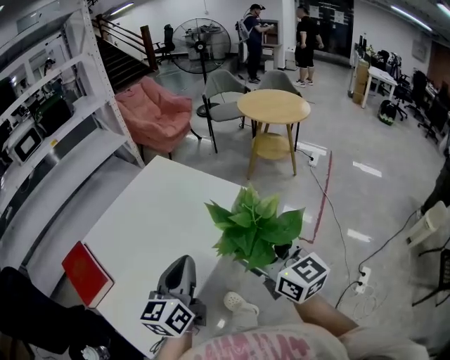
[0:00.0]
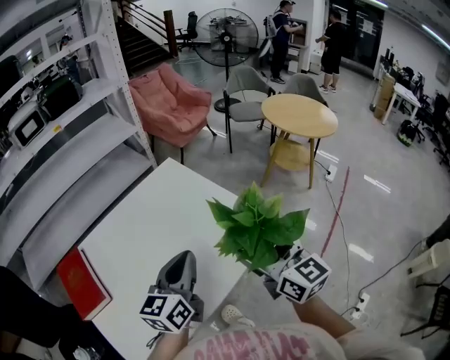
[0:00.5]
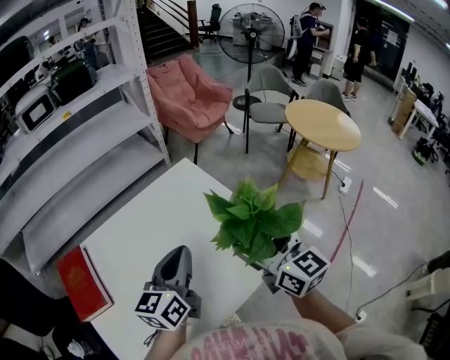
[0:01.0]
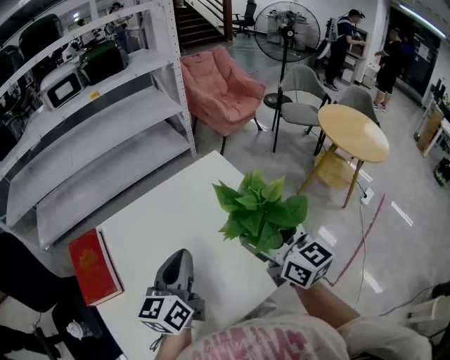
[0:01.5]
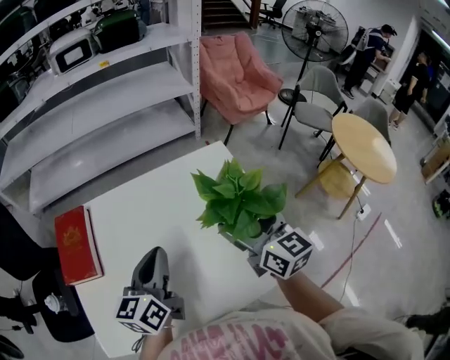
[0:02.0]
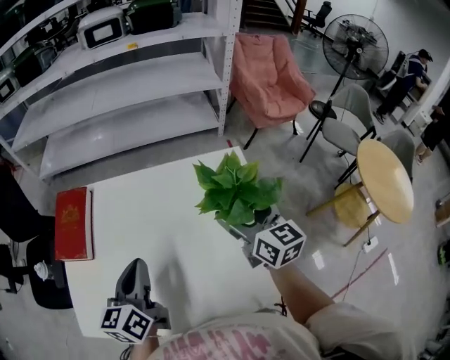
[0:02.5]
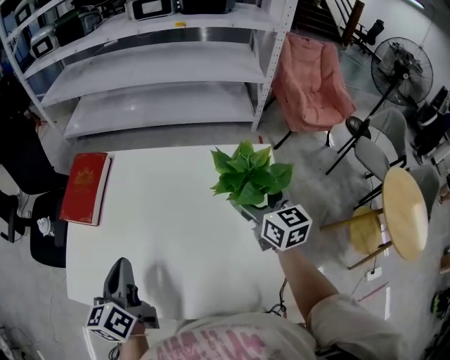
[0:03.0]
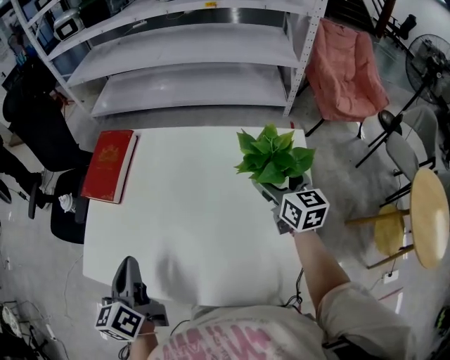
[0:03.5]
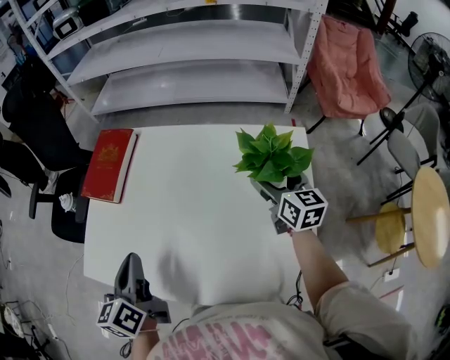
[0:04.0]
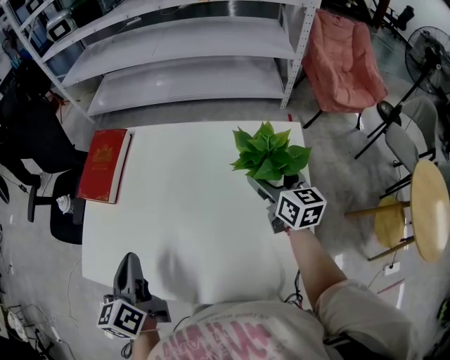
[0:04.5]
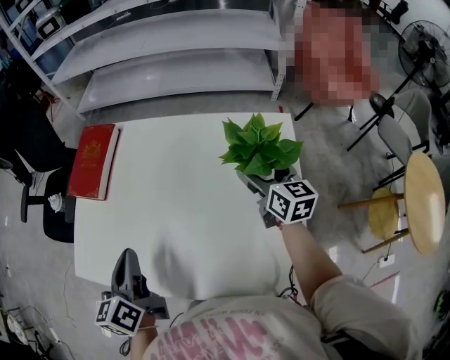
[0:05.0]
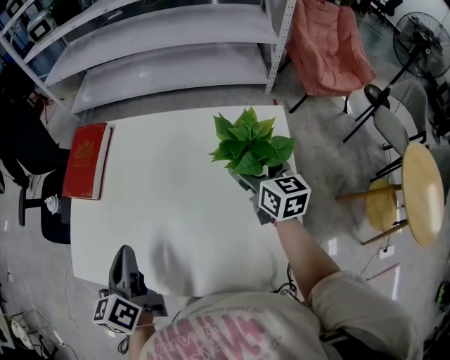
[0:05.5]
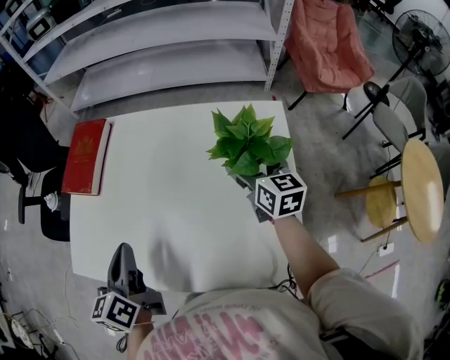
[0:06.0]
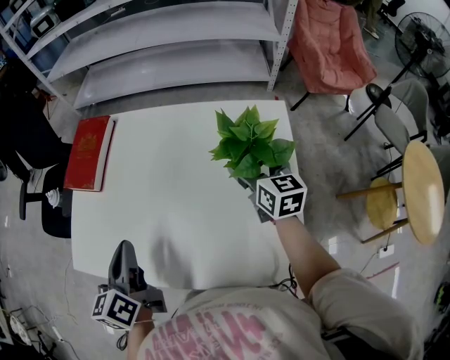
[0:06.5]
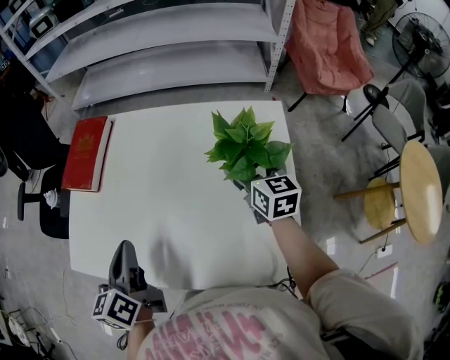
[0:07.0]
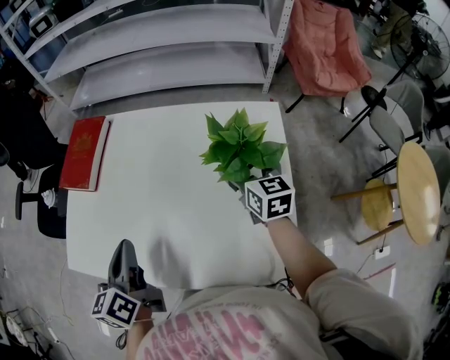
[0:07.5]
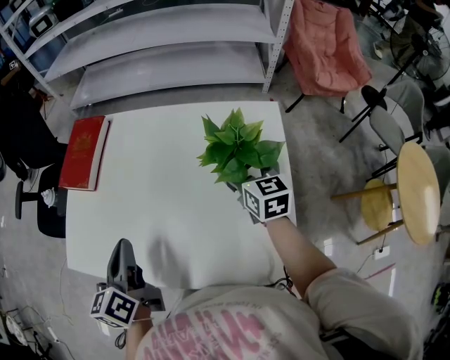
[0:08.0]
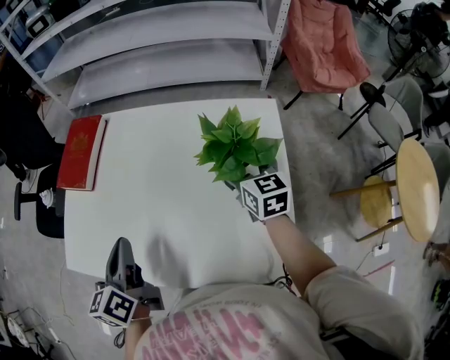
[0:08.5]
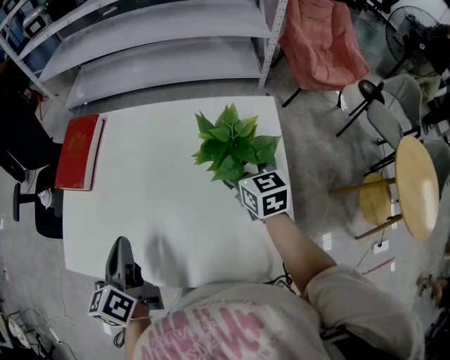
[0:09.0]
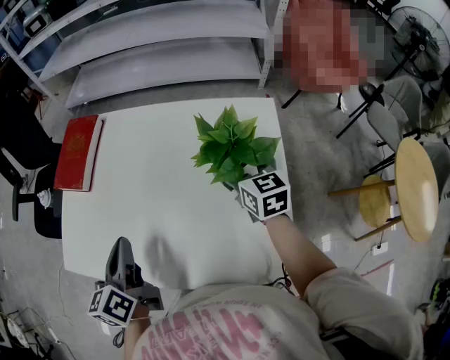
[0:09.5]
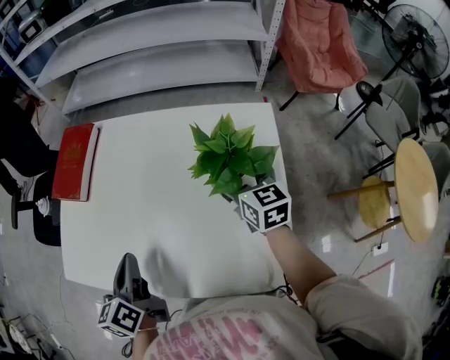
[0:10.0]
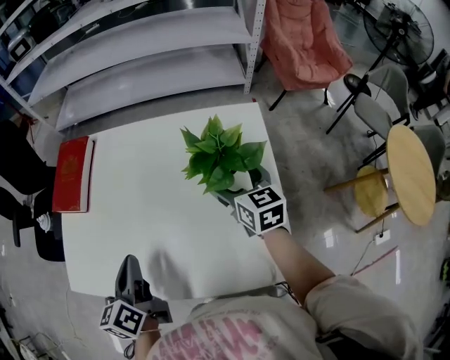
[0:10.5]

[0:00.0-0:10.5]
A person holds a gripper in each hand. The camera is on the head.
0:00.0 to 0:02.0: The left gripper ends up about 25 cm from where it was, and turns by approximately 40 degrees; the right gripper shifts by approximately 35 cm, and swivels roughly 30 degrees.
0:02.0 to 0:04.0: The right gripper ends up some 20 cm from where it was, and rotates approximately 20 degrees; the left gripper moves about 15 cm, and swivels about 50 degrees.
0:04.0 to 0:08.5: The grippers move only a little.
0:08.5 to 0:10.5: The grippers move only a little.

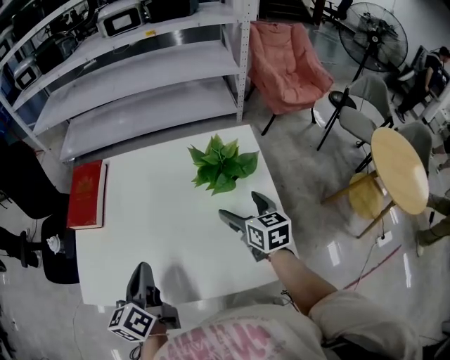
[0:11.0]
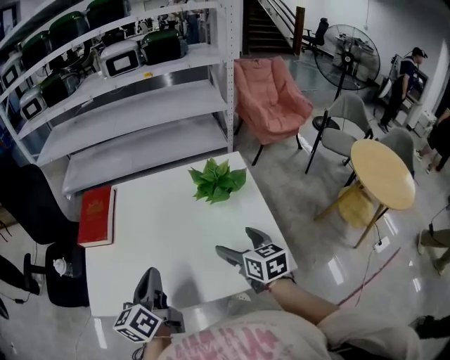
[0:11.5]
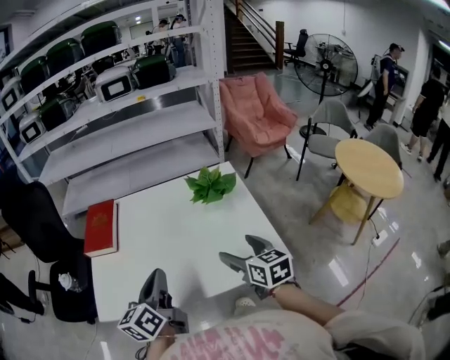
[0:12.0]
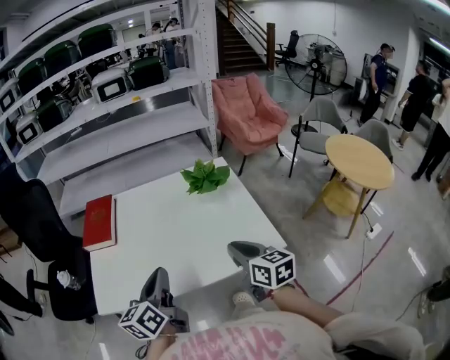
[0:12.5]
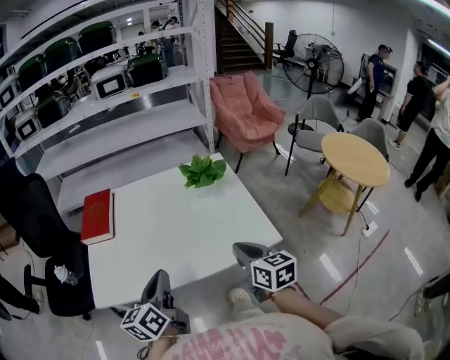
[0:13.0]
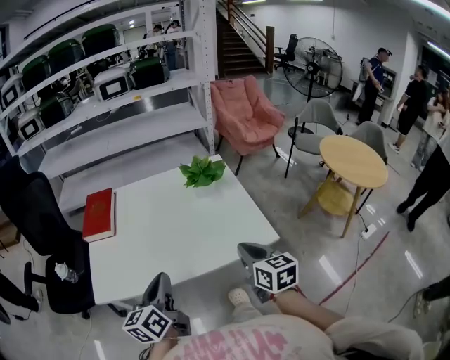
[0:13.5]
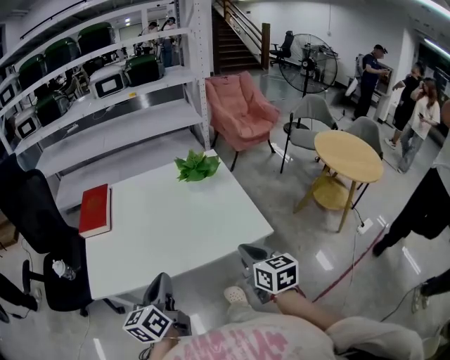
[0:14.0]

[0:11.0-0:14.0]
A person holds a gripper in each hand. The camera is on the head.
0:11.0 to 0:12.5: The right gripper is displaced backward by approximately 20 cm, and closes its fingers. The left gripper shifts approximately 10 cm backward and upward, and swivels approximately 20 degrees.
0:12.5 to 0:14.0: The grippers both shift backward by approximately 10 cm.

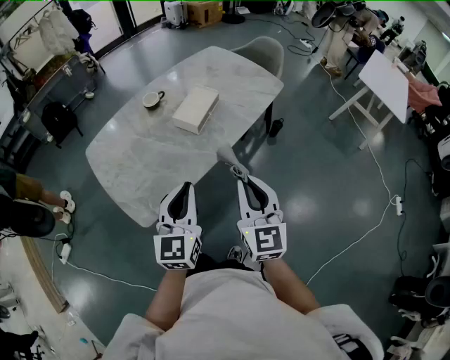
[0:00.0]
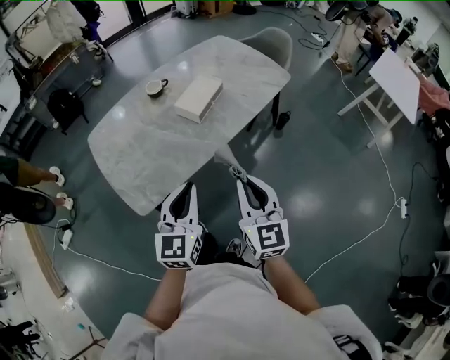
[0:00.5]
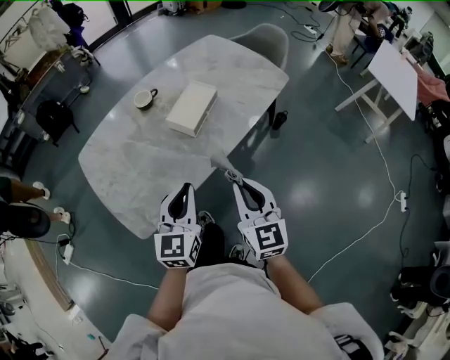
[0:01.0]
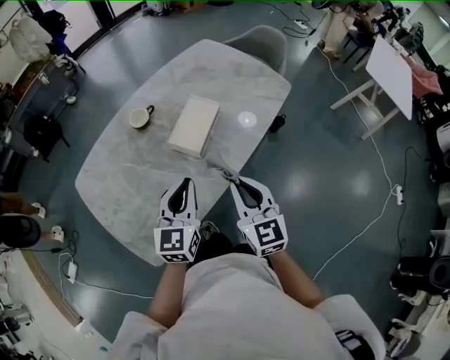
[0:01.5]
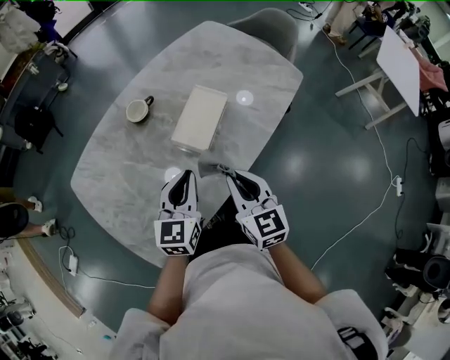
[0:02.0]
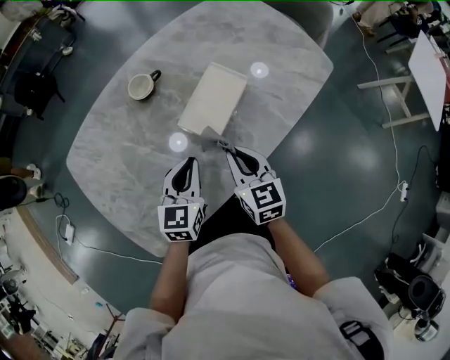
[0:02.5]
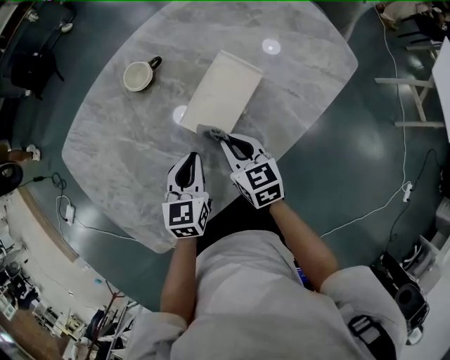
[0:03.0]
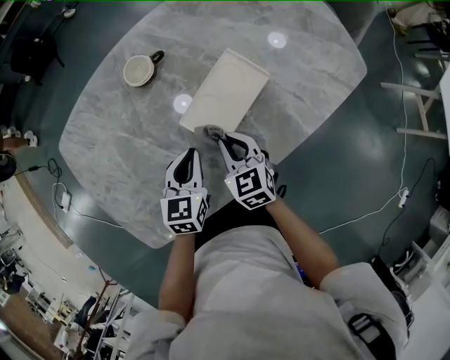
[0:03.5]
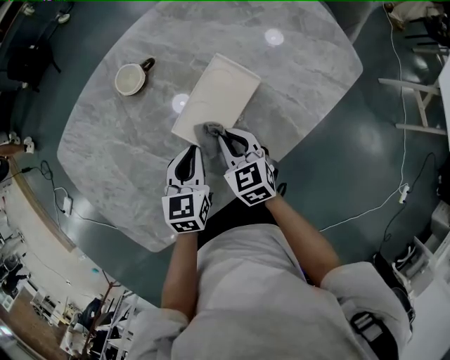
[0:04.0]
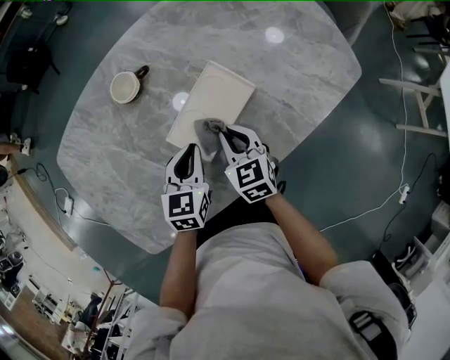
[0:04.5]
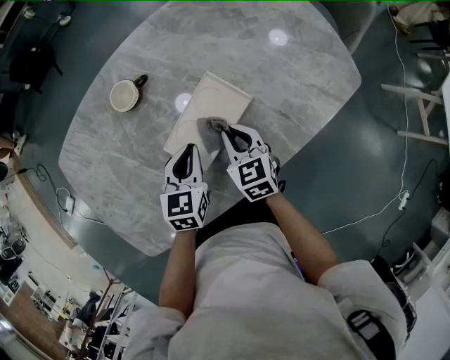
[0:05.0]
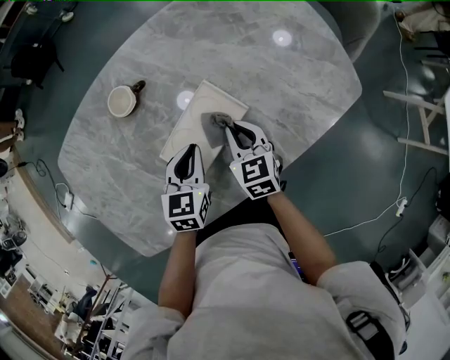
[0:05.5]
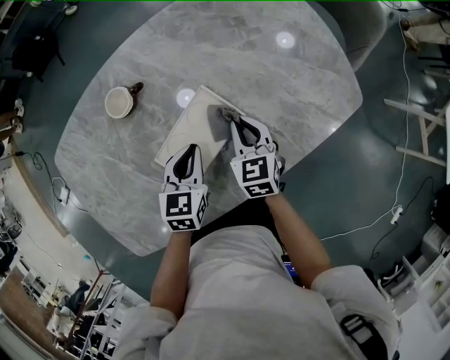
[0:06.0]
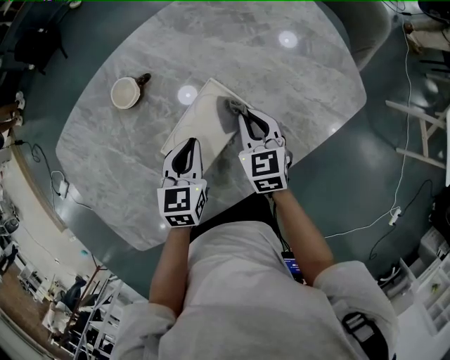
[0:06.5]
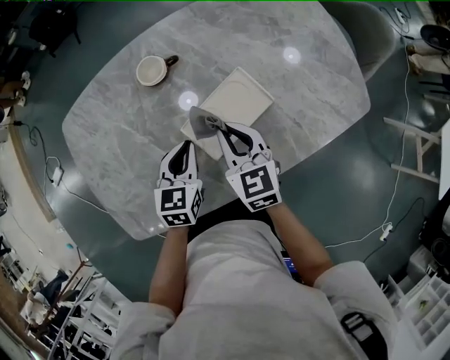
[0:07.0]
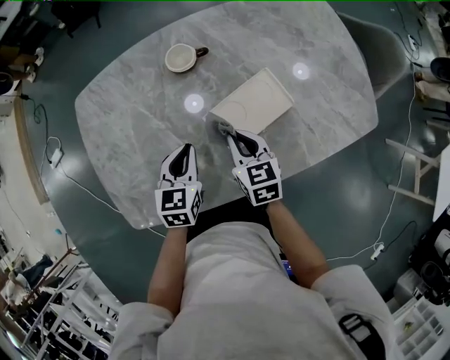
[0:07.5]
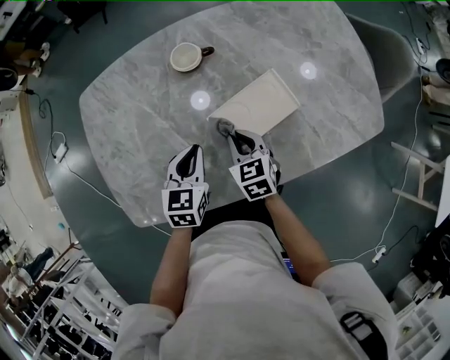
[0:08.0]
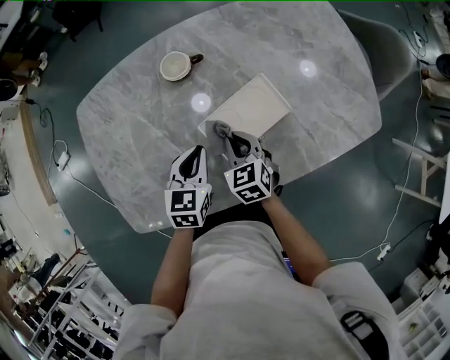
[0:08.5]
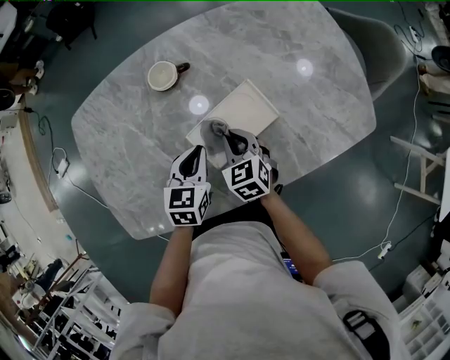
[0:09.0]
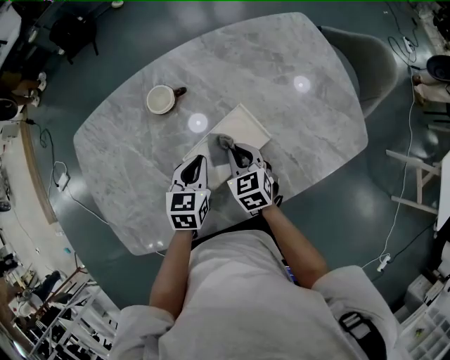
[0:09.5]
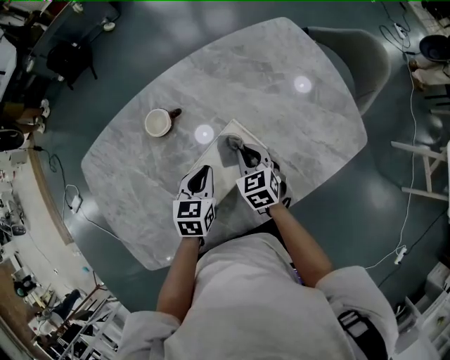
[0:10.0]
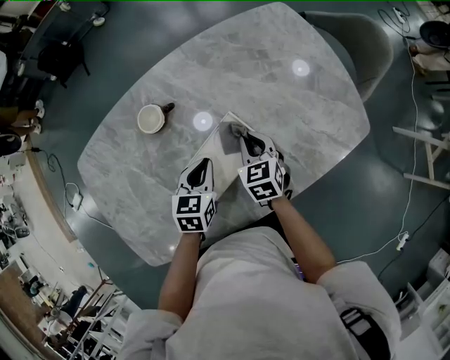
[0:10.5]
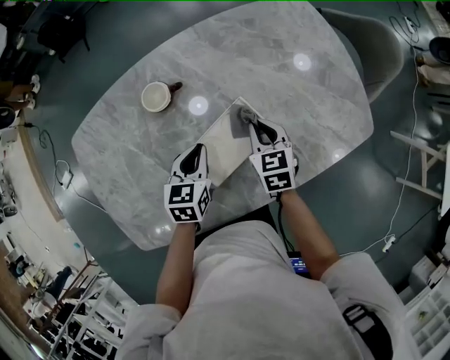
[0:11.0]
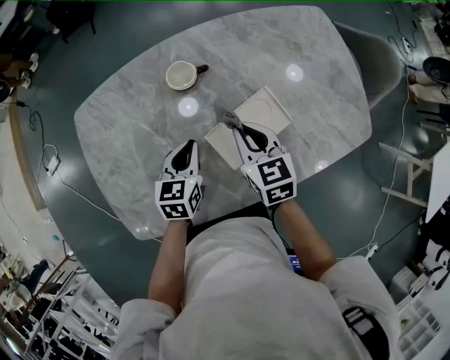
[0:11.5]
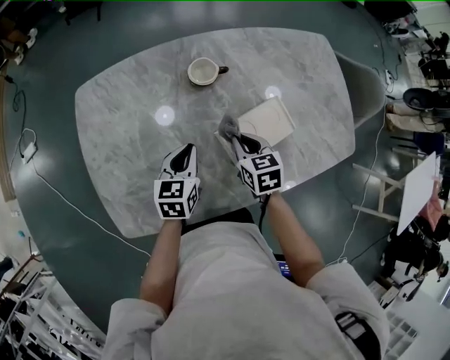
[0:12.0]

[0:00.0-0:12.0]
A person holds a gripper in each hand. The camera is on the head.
0:00.0 to 0:02.0: The two grippers go approximately 30 cm forward and downward.
0:02.0 to 0:04.0: The grippers both shift downward and forward by approximately 20 cm. The right gripper rotates about 30 degrees. The left gripper turns by roughly 20 degrees.
0:04.0 to 0:06.0: The left gripper goes some 10 cm forward and to the right. Meanwhile the right gripper shifts some 15 cm to the right and forward.
0:06.0 to 0:08.0: Both grippers travel together to the left and backward, roughly 20 cm. The right gripper changes its angle by roughly 20 degrees.
0:08.0 to 0:10.0: Both grippers move to the right and forward, some 15 cm.
0:10.0 to 0:12.0: The right gripper is displaced to the left and backward by approximately 15 cm; the left gripper travels to the left by about 20 cm.

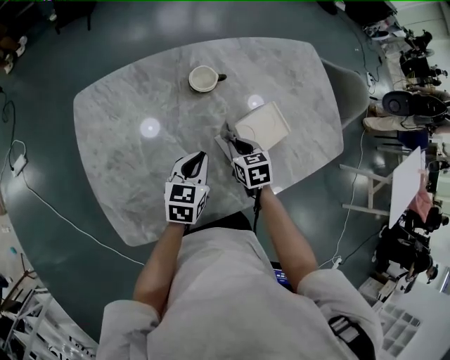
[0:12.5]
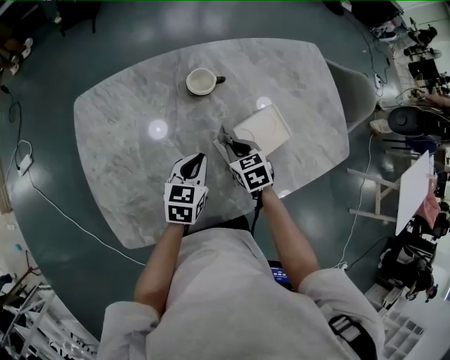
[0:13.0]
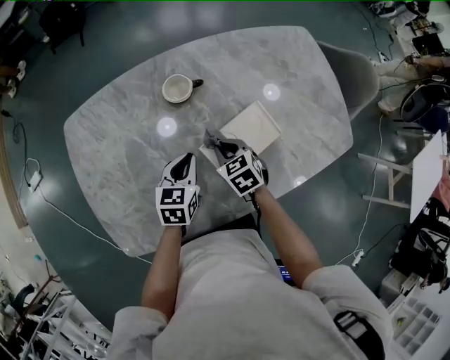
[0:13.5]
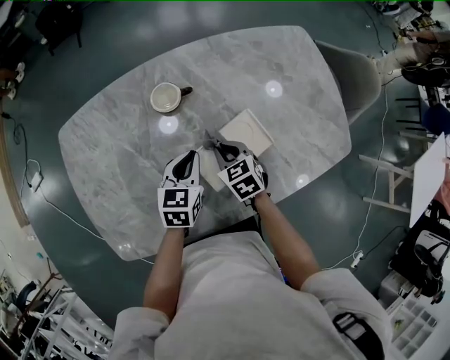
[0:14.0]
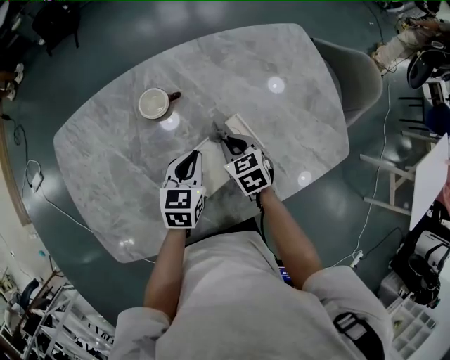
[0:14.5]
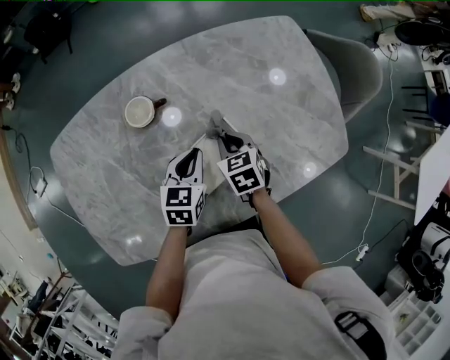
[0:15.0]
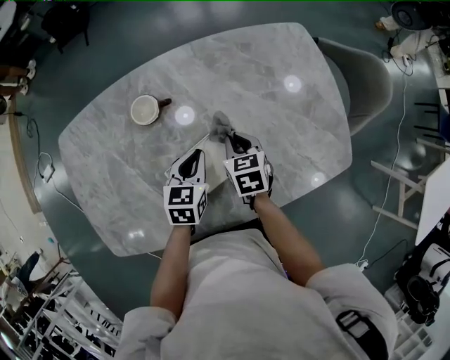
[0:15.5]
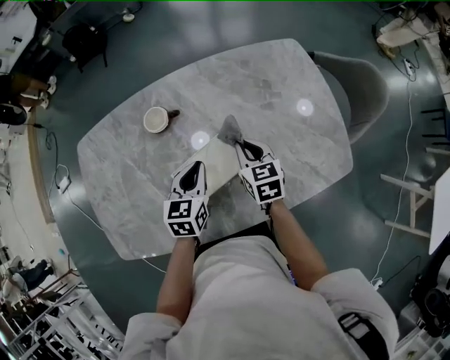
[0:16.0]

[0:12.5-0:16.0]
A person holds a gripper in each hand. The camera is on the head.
0:12.5 to 0:14.5: The grippers both shift to the right and forward by about 15 cm.
0:14.5 to 0:16.0: The right gripper heads to the right and upward, covering about 10 cm, while the left gripper is displaced to the right by approximately 5 cm.
